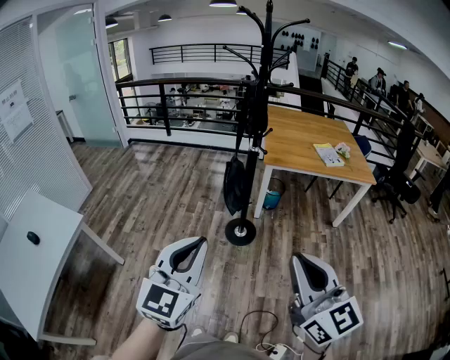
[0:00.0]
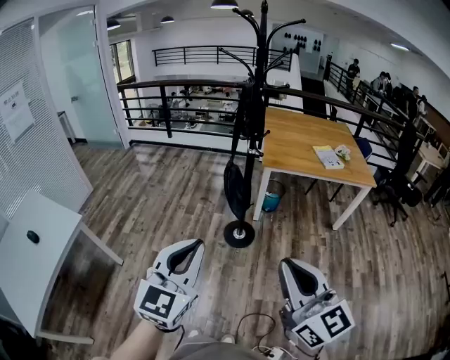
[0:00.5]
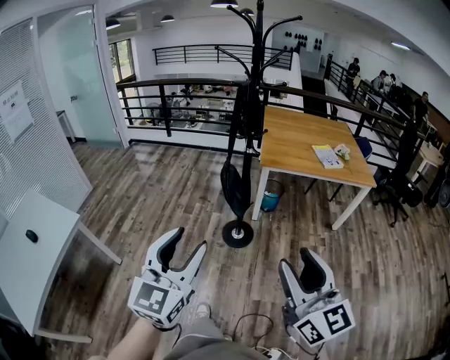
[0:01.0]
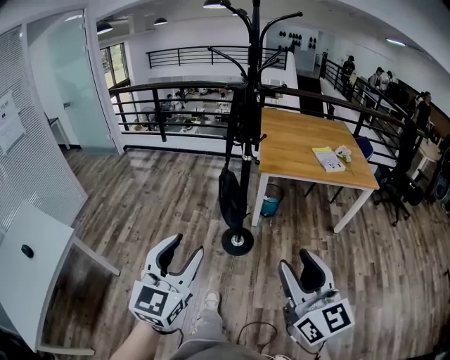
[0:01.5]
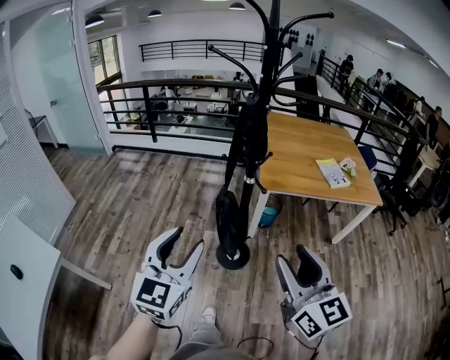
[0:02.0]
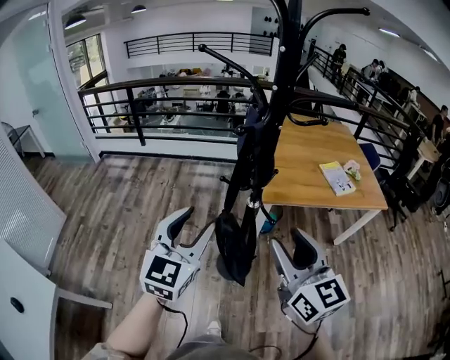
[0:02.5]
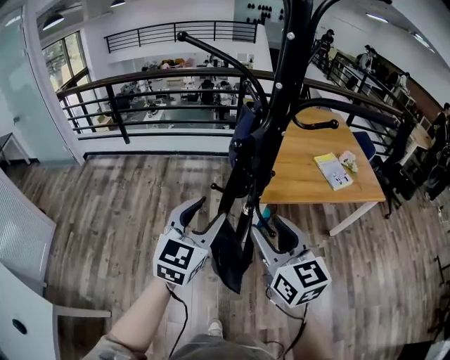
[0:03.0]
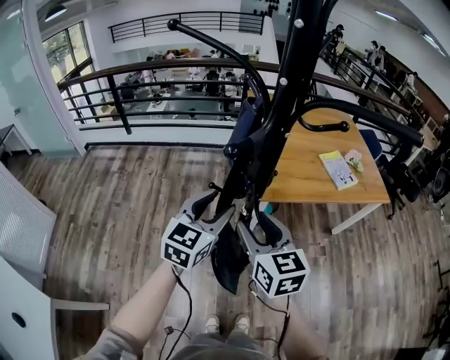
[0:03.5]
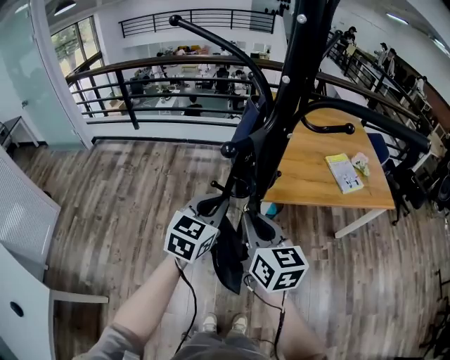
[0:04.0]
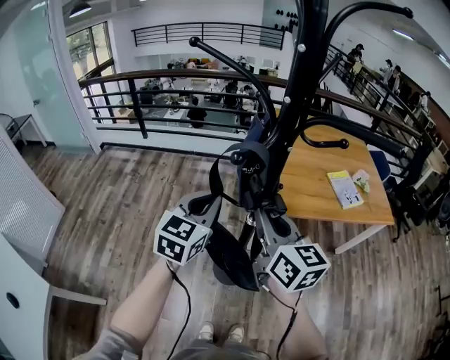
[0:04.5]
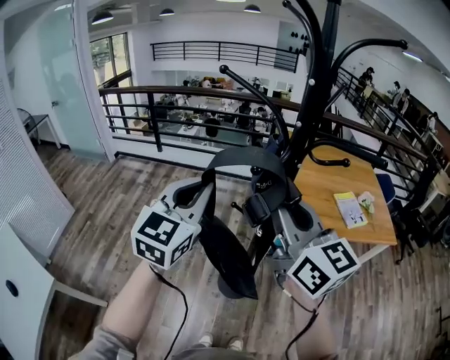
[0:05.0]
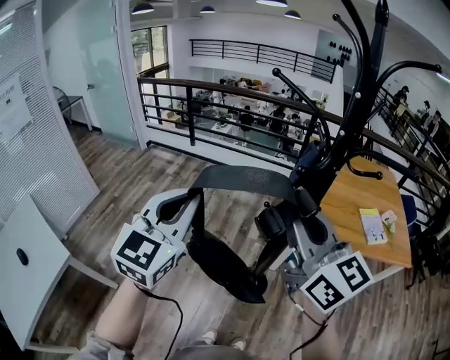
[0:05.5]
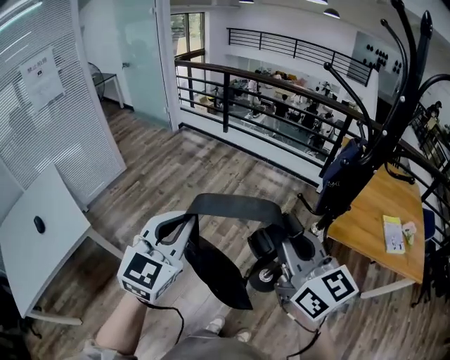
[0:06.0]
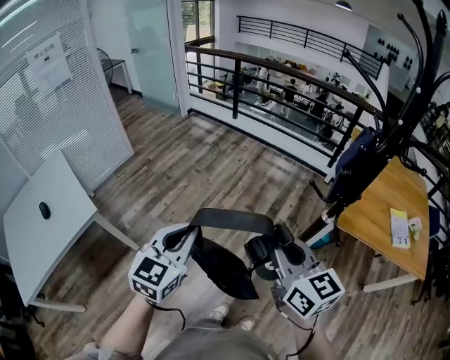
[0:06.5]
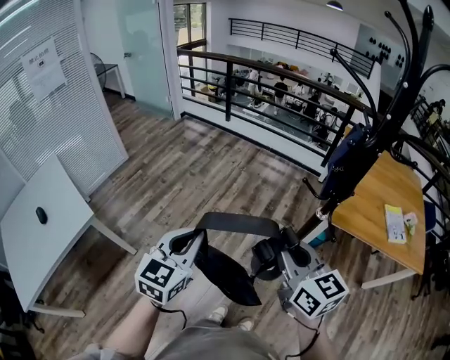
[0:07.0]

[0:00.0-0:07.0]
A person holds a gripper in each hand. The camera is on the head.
0:00.0 to 0:02.0: The grippers both shift forward by roughly 25 cm. The left gripper opens up; the right gripper opens up.
0:02.0 to 0:03.5: Both grippers travel together forward, some 35 cm. The left gripper rotates roughly 20 degrees.
0:03.5 to 0:05.0: The left gripper travels upward and to the left by about 20 cm, changes its angle by some 20 degrees, and closes, while the right gripper is displaced upward by about 20 cm, swivels some 30 degrees, and closes its fingers.
0:05.0 to 0:07.0: The right gripper heads downward, to the left and backward, covering roughly 25 cm, and turns by roughly 30 degrees. The left gripper moves to the left, backward and downward, approximately 30 cm, and swivels roughly 30 degrees.

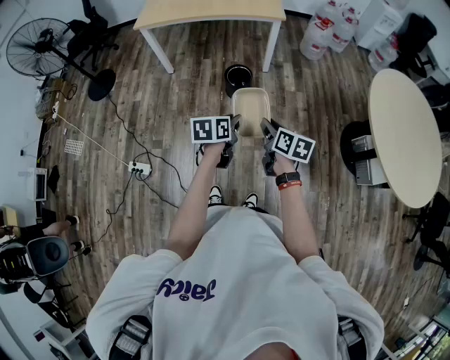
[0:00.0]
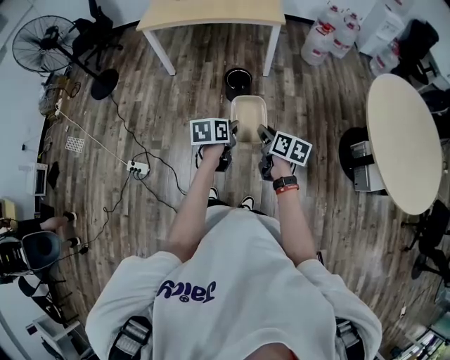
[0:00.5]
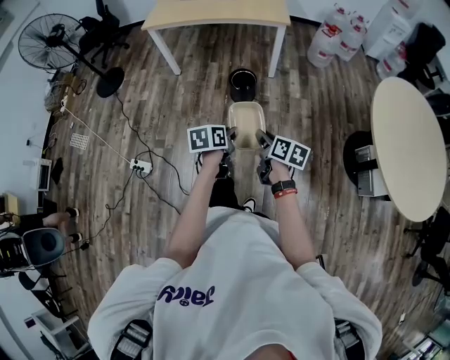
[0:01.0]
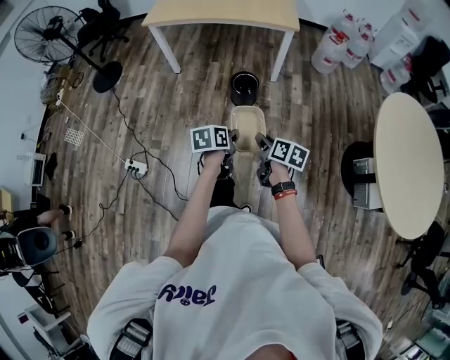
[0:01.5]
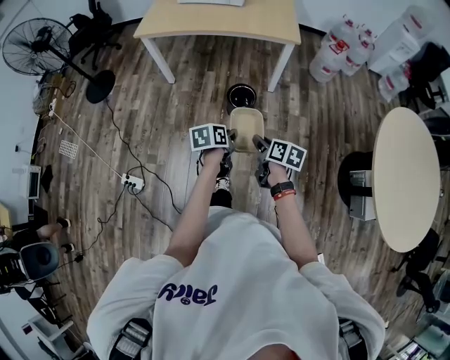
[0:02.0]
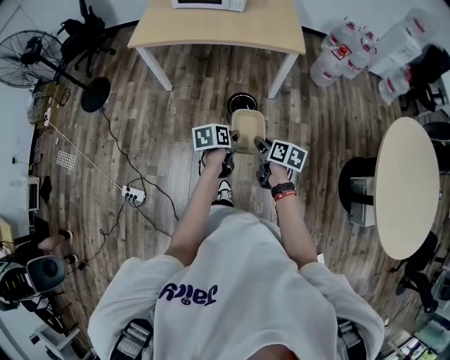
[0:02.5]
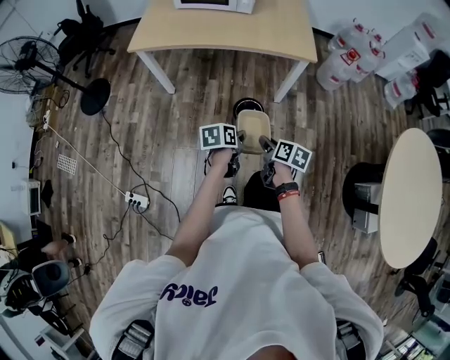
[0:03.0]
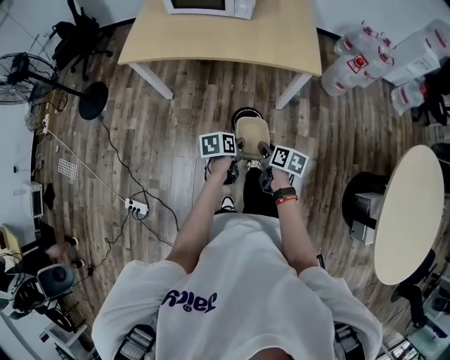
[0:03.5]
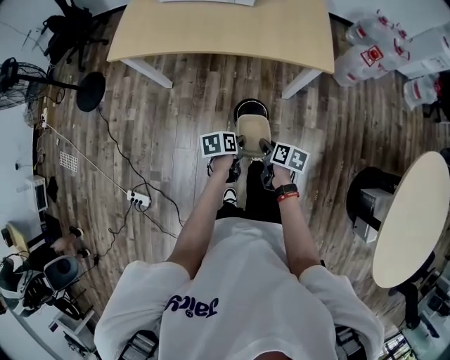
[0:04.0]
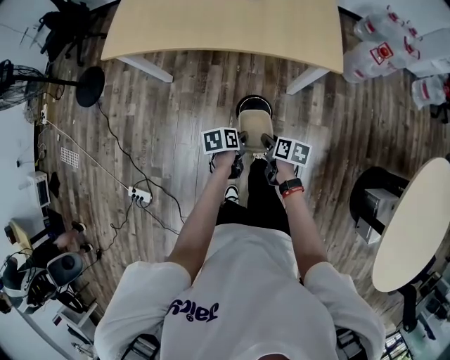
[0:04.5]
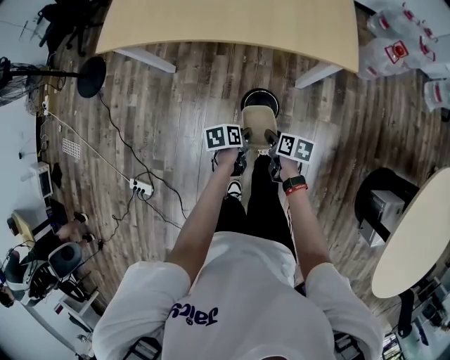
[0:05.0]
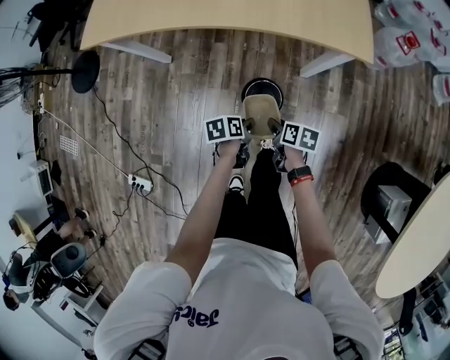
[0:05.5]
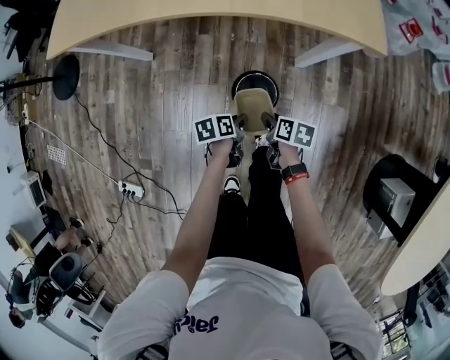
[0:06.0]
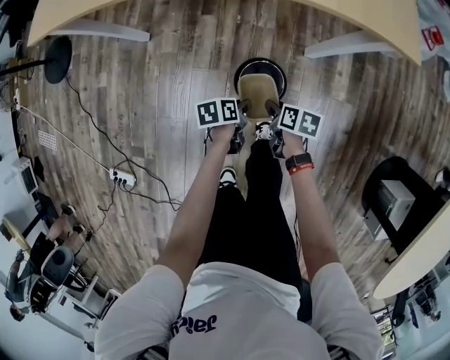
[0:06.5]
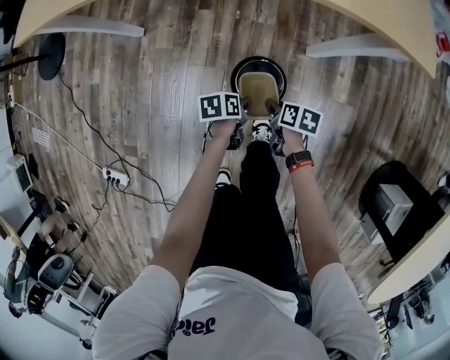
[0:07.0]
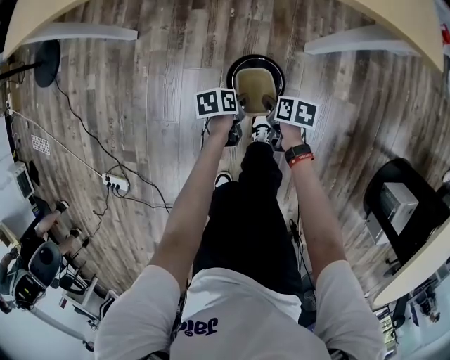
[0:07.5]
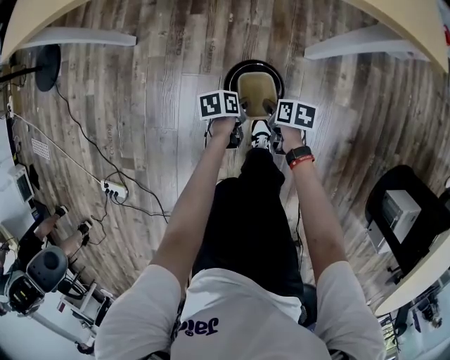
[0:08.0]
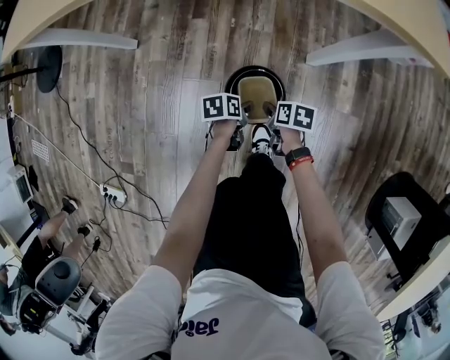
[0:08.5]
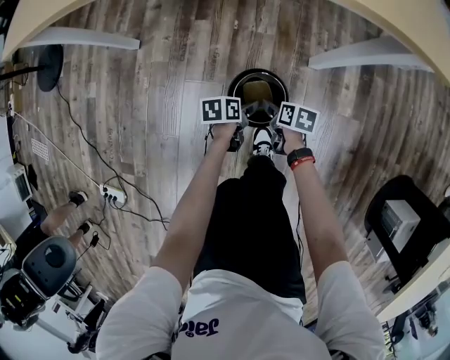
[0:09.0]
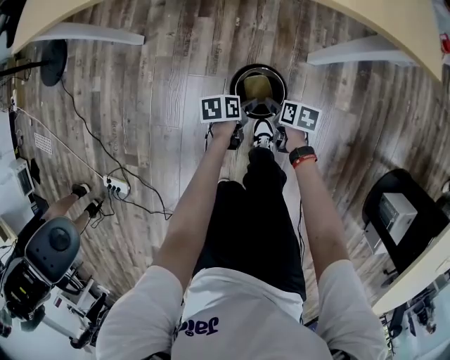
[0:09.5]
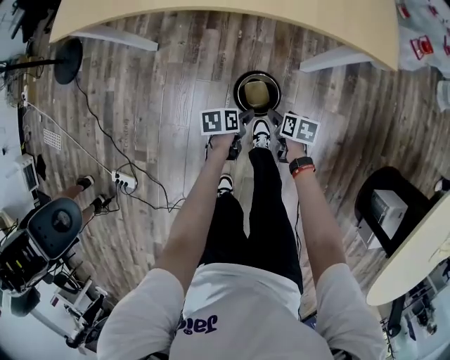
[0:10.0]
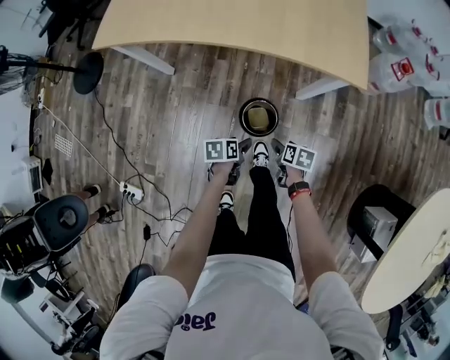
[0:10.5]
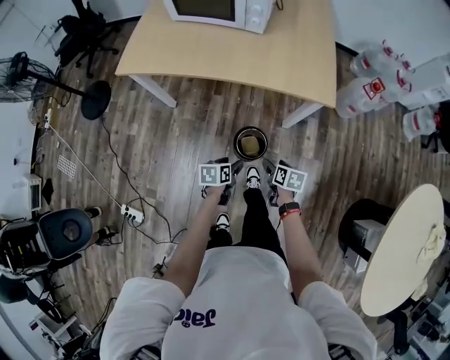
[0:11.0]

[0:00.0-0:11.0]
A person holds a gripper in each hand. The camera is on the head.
0:00.0 to 0:02.0: The two grippers go roughly 20 cm forward.
0:02.0 to 0:03.5: The two grippers go roughly 35 cm forward.
0:03.5 to 0:05.5: The grippers both shift downward and forward by about 35 cm.
0:05.5 to 0:07.5: The two grippers go roughly 30 cm downward.
0:07.5 to 0:09.0: Both grippers move downward, about 5 cm. The left gripper opens; the right gripper opens its fingers.
0:09.0 to 0:11.0: Both grippers move upward, roughly 60 cm.

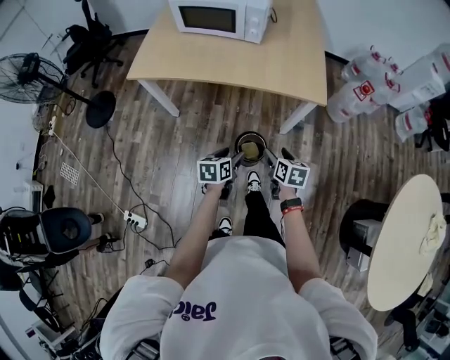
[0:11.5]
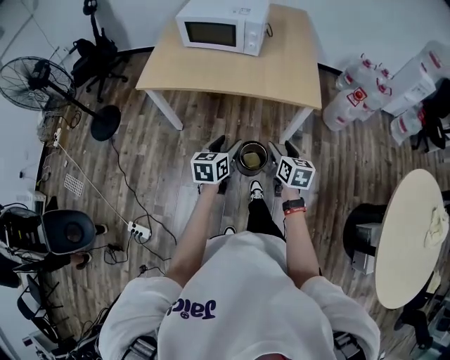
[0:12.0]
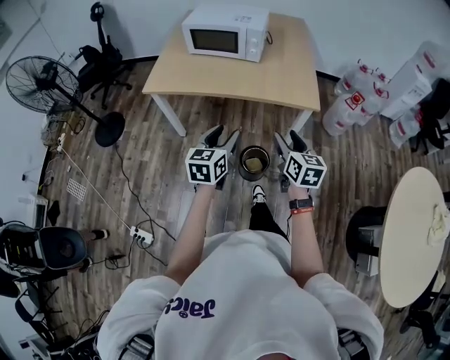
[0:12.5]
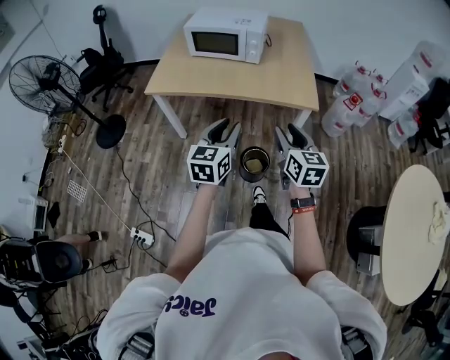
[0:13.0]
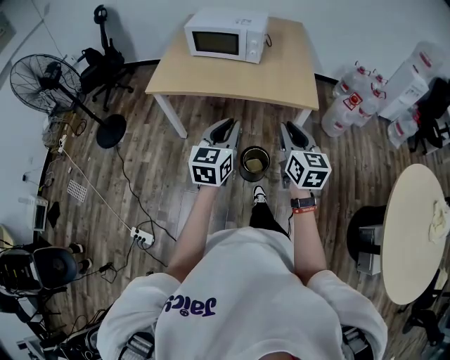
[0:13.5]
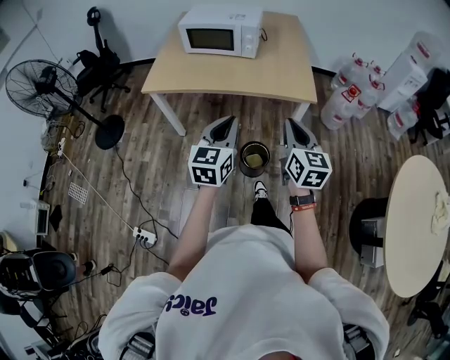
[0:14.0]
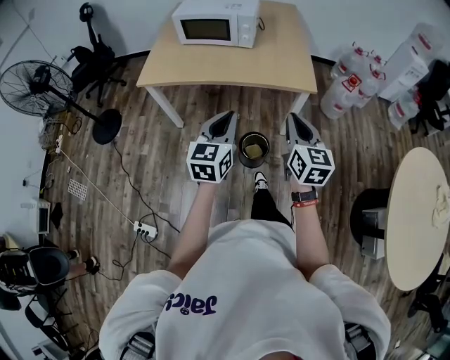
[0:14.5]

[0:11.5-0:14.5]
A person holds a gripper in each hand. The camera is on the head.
0:11.5 to 0:13.0: The right gripper travels upward and backward by about 30 cm, turns by roughly 30 degrees, and closes its fingers. Meanwhile the left gripper is displaced upward by approximately 30 cm, changes its angle by some 40 degrees, and closes.
0:13.0 to 0:14.5: The left gripper closes; the right gripper closes up.

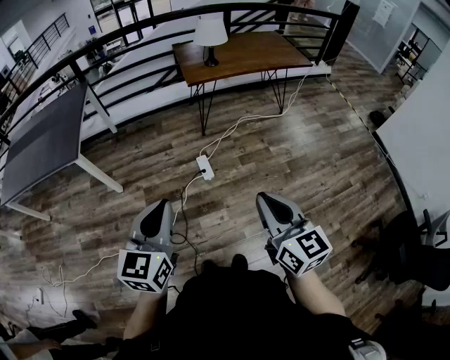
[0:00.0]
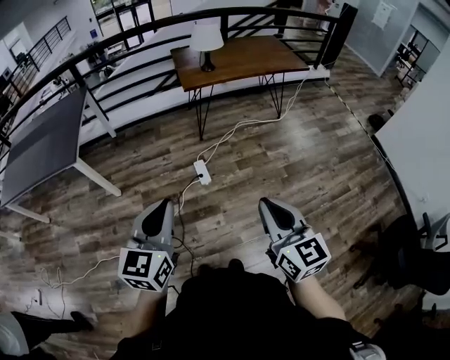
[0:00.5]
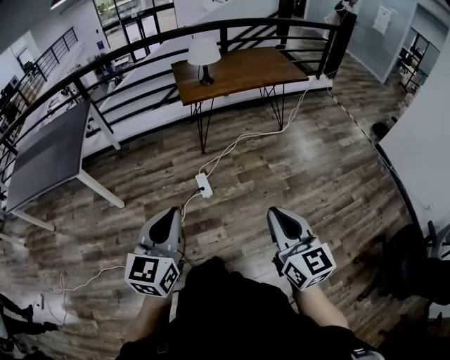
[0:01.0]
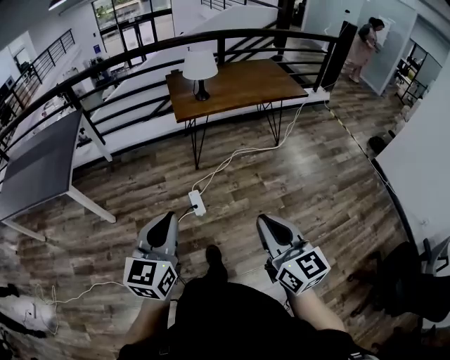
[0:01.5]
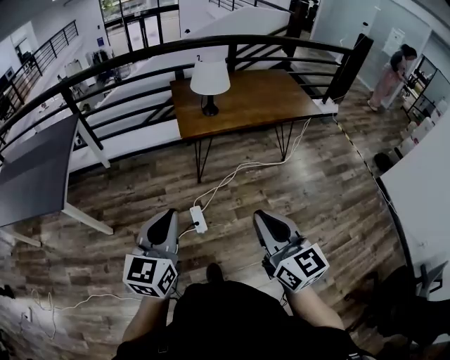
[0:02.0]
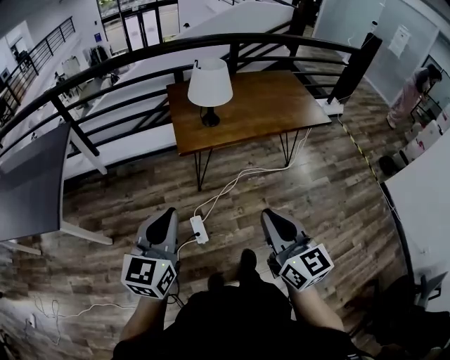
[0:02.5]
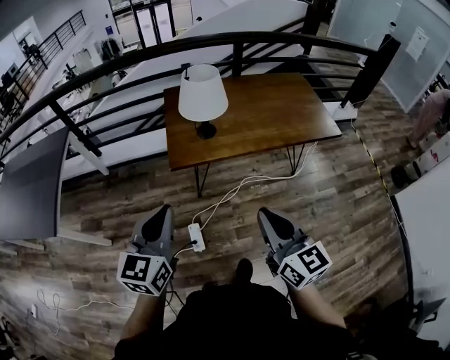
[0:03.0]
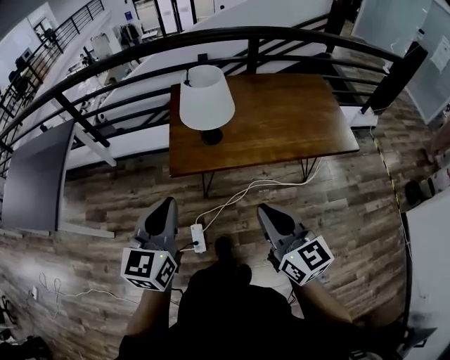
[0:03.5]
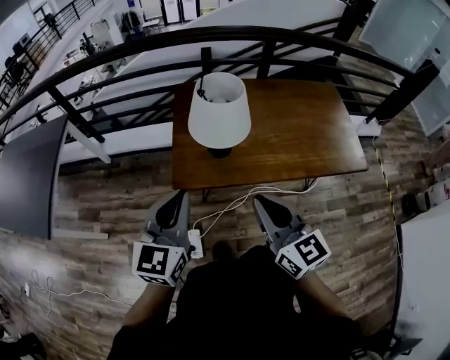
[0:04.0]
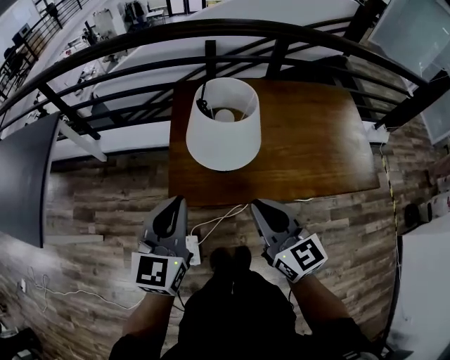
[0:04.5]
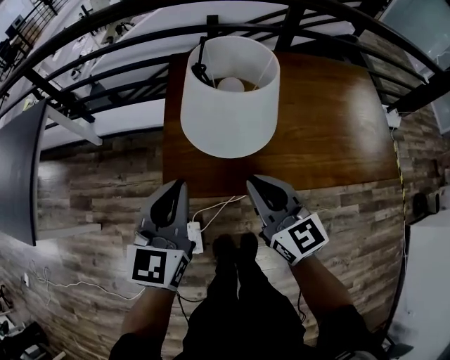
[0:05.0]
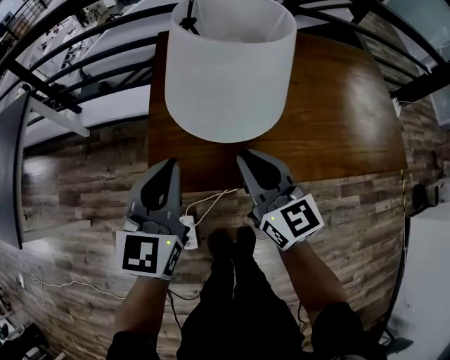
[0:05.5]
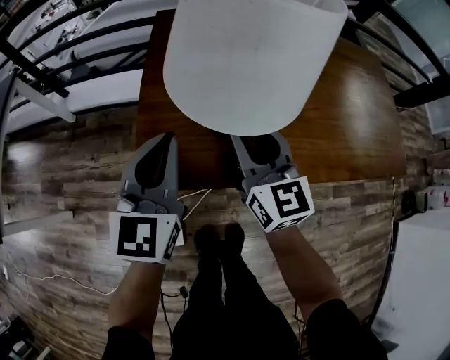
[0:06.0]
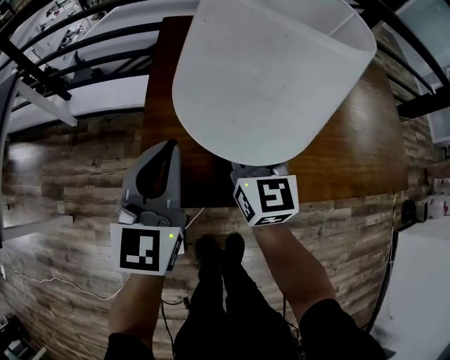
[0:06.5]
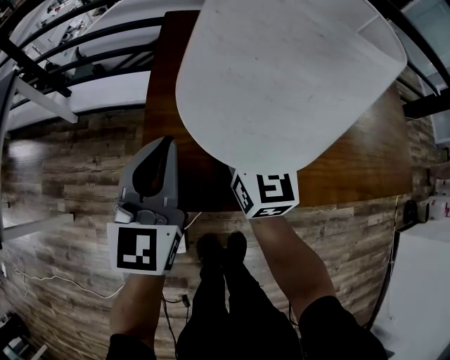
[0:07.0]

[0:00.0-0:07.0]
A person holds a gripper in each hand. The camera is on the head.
0:00.0 to 0:02.0: The grippers both shift forward by about 30 cm.
0:02.0 to 0:03.5: Both grippers travel together forward and to the right, approximately 40 cm.
0:03.5 to 0:05.0: Both grippers travel together forward and downward, approximately 30 cm.
0:05.0 to 0:07.0: The right gripper moves forward and downward, about 20 cm, and opens up; the left gripper shifts about 15 cm downward and forward.
